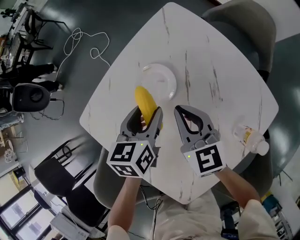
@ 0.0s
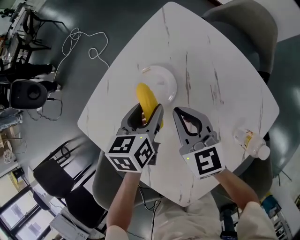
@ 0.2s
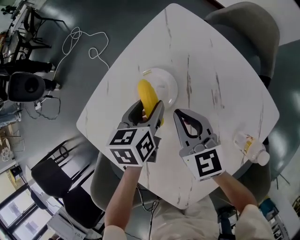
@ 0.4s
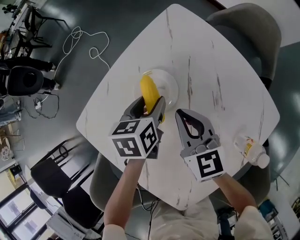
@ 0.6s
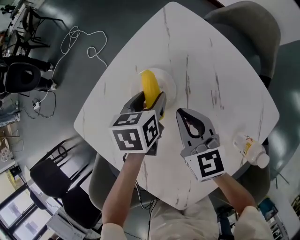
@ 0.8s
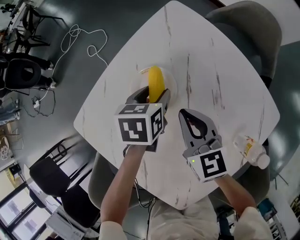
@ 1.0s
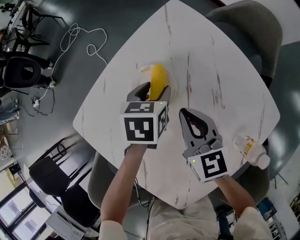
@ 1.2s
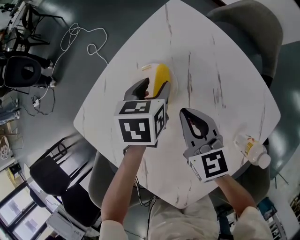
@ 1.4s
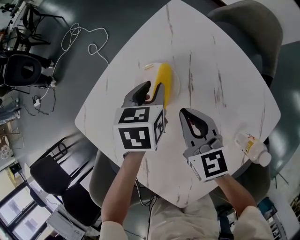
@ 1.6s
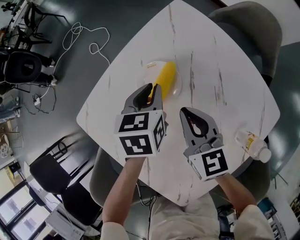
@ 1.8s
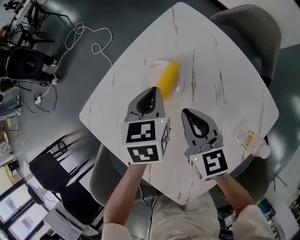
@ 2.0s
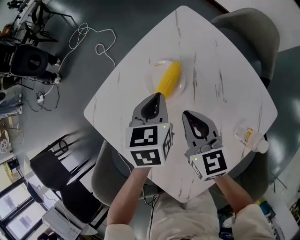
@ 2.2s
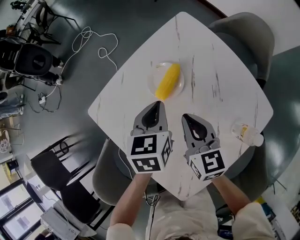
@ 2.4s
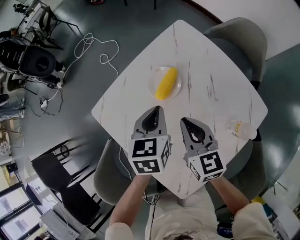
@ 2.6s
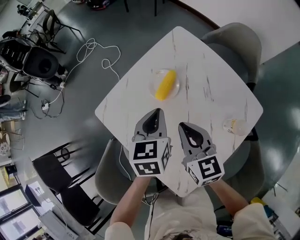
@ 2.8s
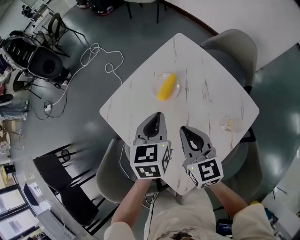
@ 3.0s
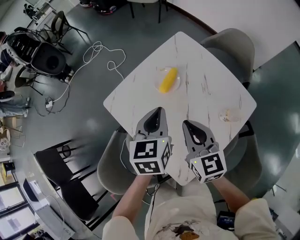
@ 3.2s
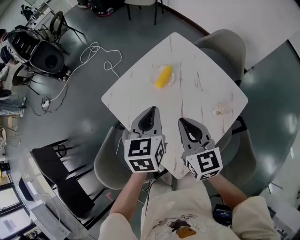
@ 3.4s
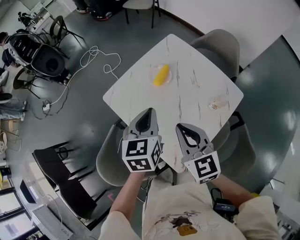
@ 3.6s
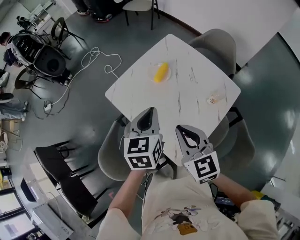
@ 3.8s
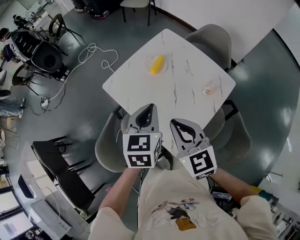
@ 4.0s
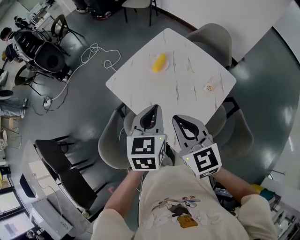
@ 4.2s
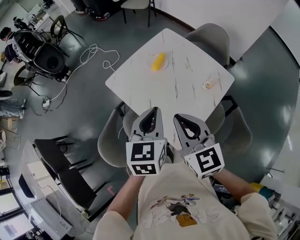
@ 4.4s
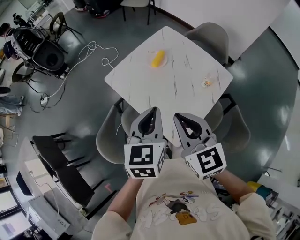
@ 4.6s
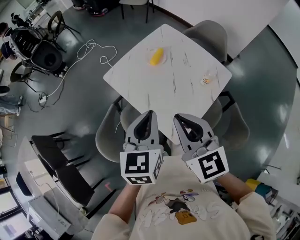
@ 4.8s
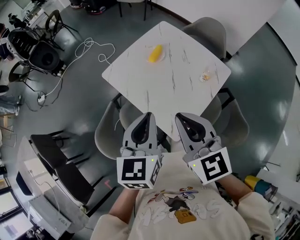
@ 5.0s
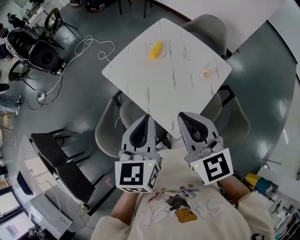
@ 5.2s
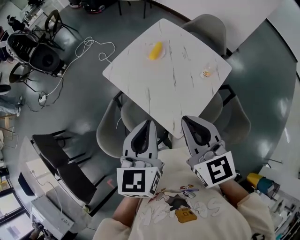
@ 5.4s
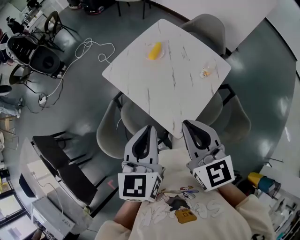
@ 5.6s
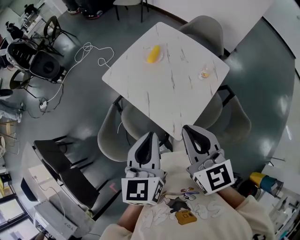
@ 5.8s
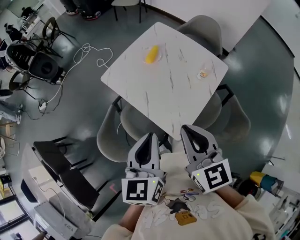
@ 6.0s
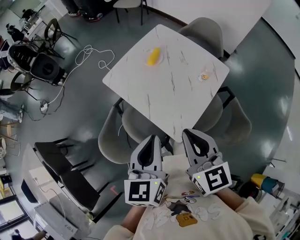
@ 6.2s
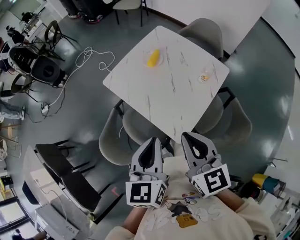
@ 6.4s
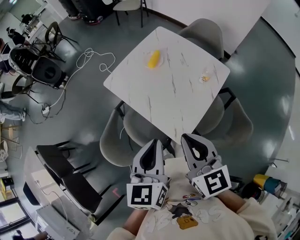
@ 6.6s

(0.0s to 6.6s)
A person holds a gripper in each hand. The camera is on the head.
0.0s - 1.6s: The left gripper moves forward, approximately 10 cm, and closes its fingers.
1.6s - 3.2s: Both grippers travel together upward and backward, roughly 25 cm. The left gripper swivels some 20 degrees, and closes.
3.2s - 5.0s: Both grippers travel together backward and upward, about 30 cm.
5.0s - 6.6s: Both grippers travel together backward, some 5 cm.

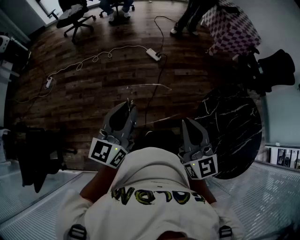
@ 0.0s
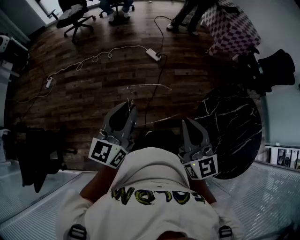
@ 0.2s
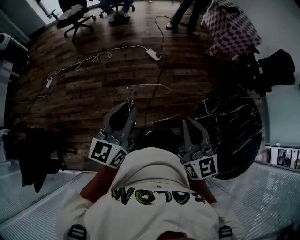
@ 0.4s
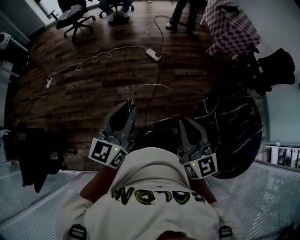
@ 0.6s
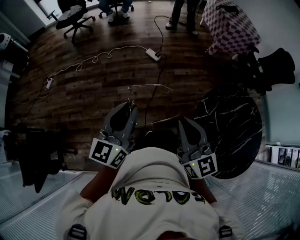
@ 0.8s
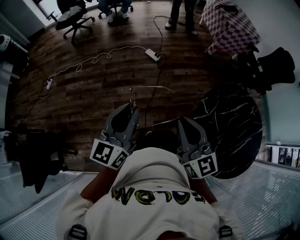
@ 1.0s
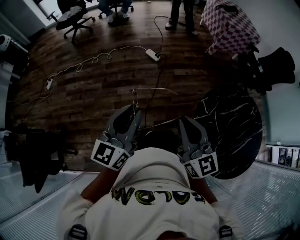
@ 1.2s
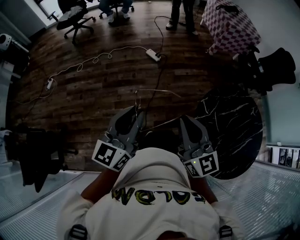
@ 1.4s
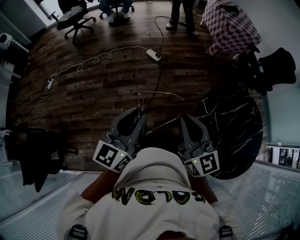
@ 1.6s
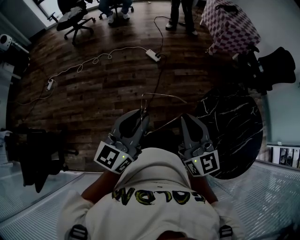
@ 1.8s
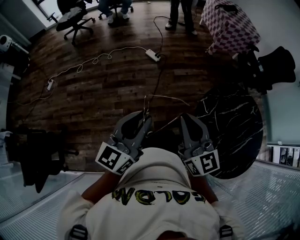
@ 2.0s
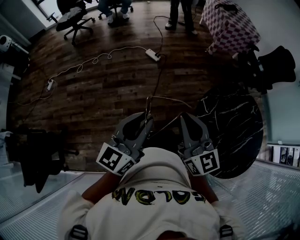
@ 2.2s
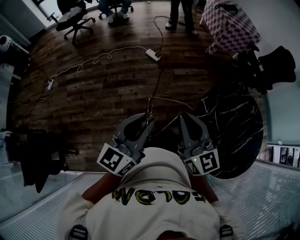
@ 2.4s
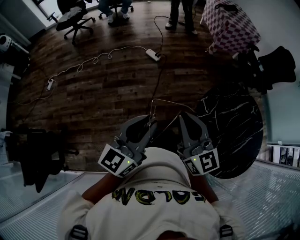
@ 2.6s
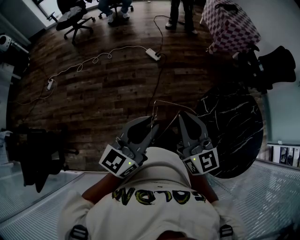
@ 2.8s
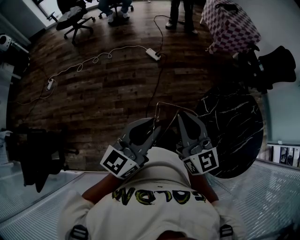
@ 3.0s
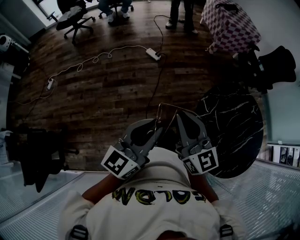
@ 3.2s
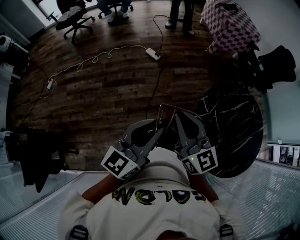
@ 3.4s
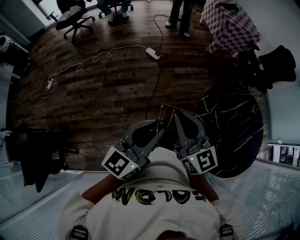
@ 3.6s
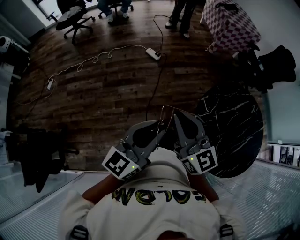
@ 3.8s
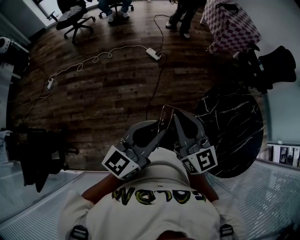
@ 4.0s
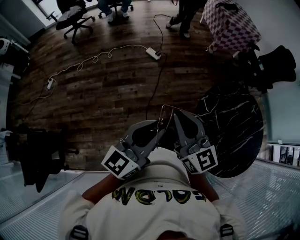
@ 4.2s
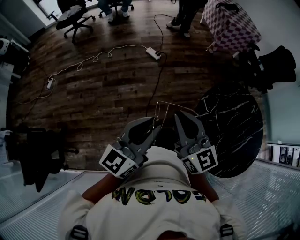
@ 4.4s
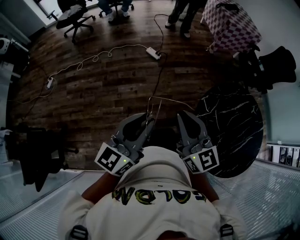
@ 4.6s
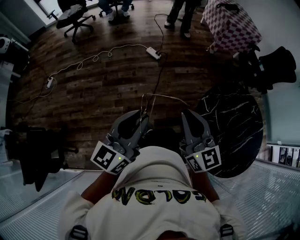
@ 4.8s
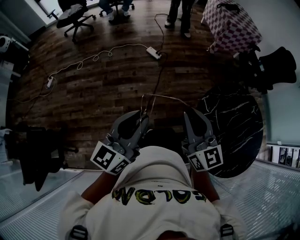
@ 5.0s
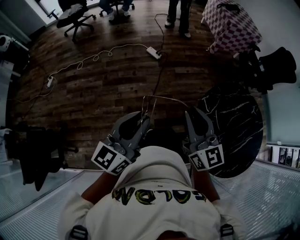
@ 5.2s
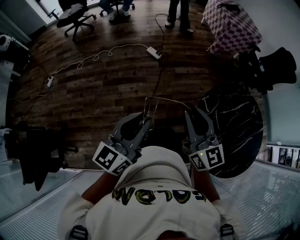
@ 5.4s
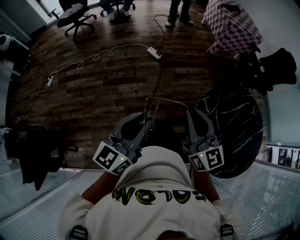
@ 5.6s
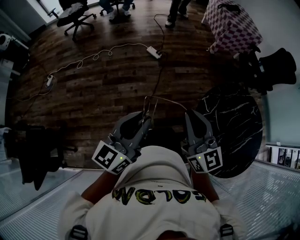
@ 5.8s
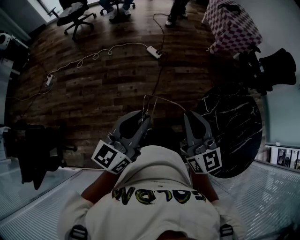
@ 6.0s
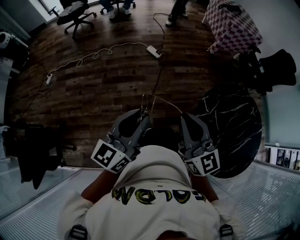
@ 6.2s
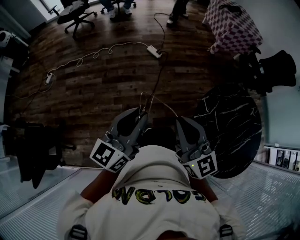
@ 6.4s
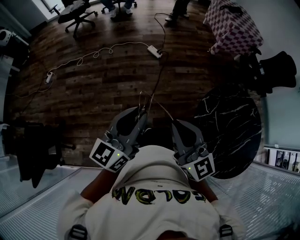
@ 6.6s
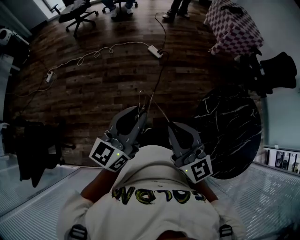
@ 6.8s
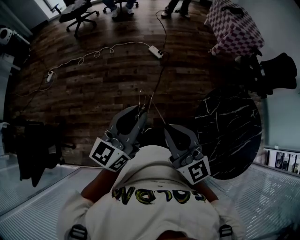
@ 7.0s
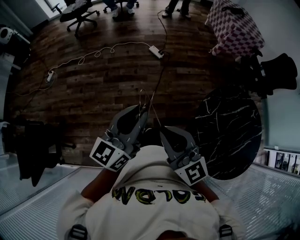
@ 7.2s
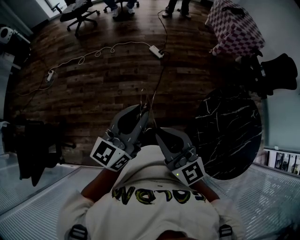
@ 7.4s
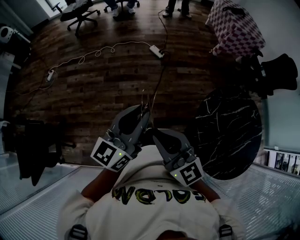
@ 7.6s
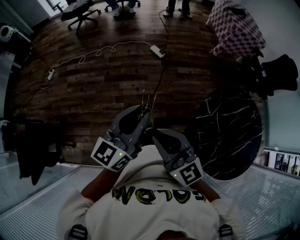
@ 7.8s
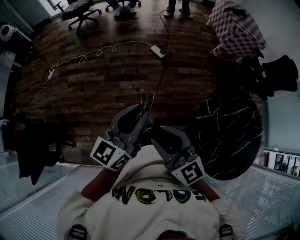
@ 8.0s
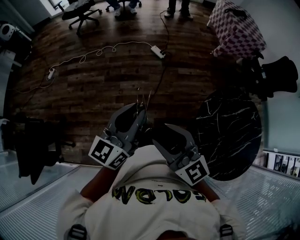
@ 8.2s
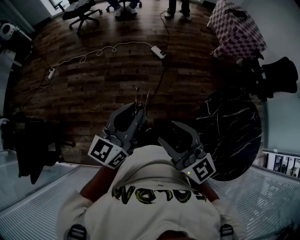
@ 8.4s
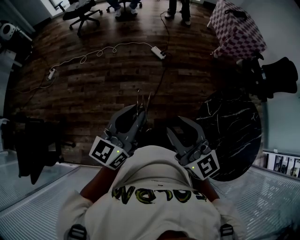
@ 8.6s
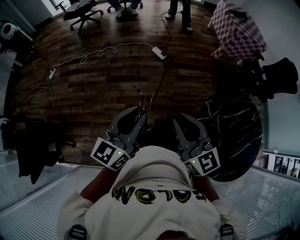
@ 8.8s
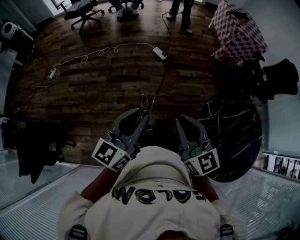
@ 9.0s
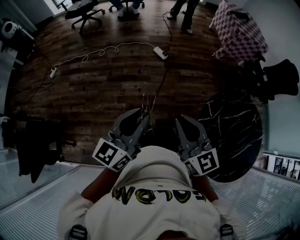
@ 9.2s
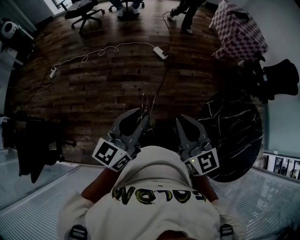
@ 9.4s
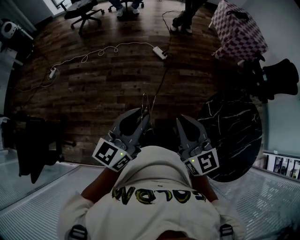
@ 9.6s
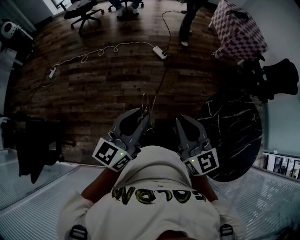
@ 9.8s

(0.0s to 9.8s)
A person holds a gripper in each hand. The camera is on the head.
0.0s - 1.4s: The grippers move only a little.
1.4s - 2.8s: The left gripper travels to the right by about 5 cm.
2.8s - 4.2s: The grippers stay close to where they were, moving slightly.
4.2s - 5.6s: The left gripper shifts by about 5 cm.
5.6s - 7.0s: The right gripper is displaced to the left and backward by roughly 10 cm.
7.0s - 8.4s: The right gripper opens.
8.4s - 9.8s: The right gripper shifts by approximately 5 cm, and closes its fingers.

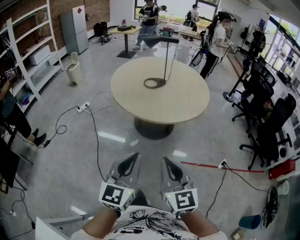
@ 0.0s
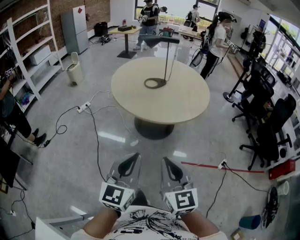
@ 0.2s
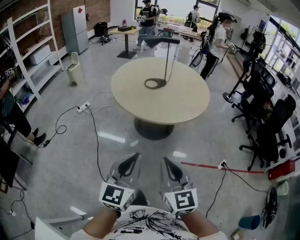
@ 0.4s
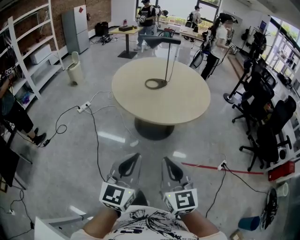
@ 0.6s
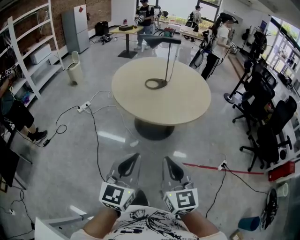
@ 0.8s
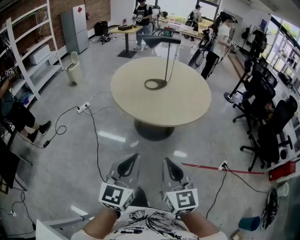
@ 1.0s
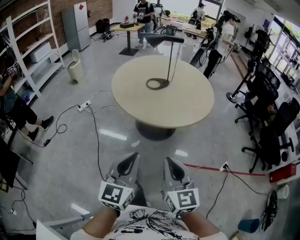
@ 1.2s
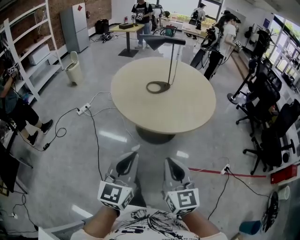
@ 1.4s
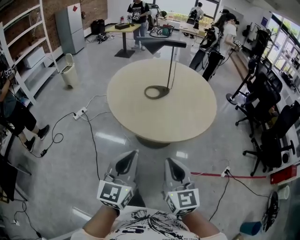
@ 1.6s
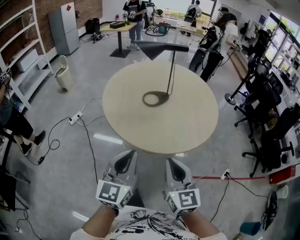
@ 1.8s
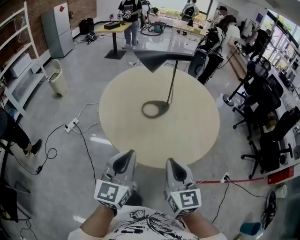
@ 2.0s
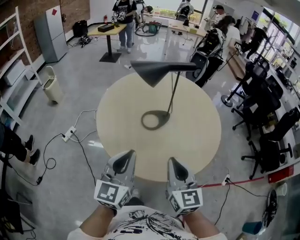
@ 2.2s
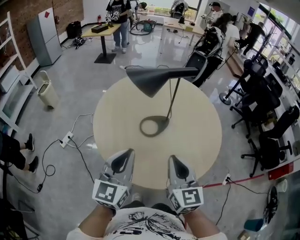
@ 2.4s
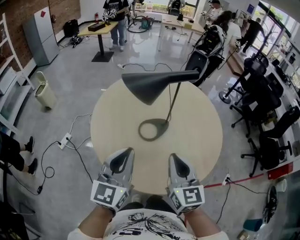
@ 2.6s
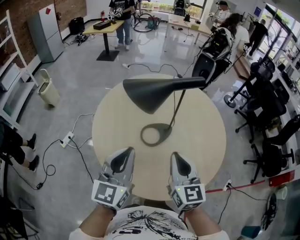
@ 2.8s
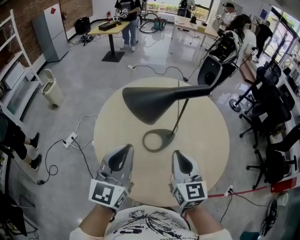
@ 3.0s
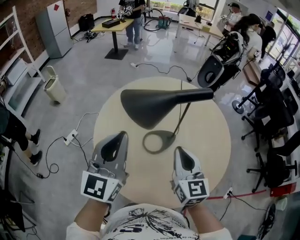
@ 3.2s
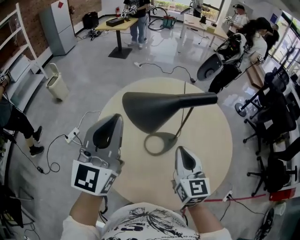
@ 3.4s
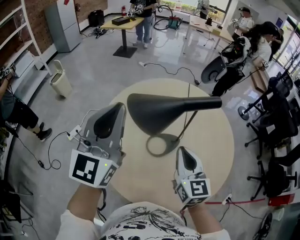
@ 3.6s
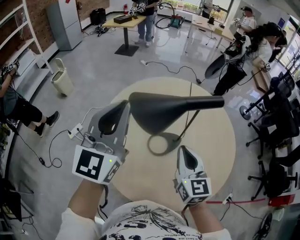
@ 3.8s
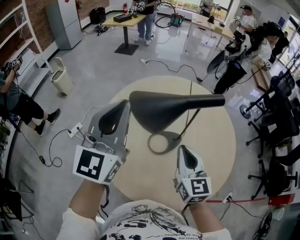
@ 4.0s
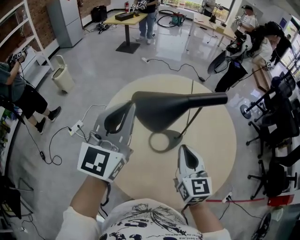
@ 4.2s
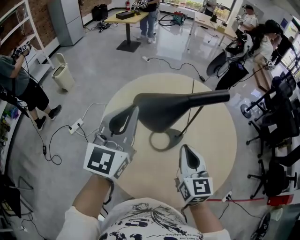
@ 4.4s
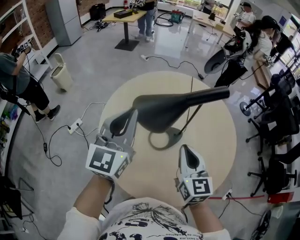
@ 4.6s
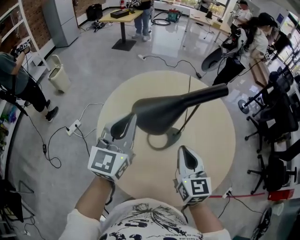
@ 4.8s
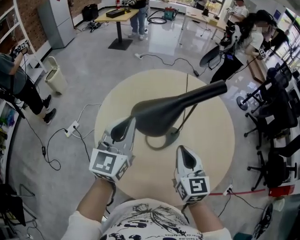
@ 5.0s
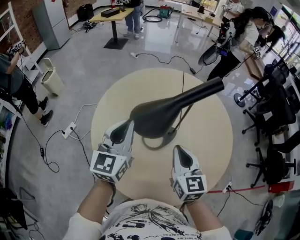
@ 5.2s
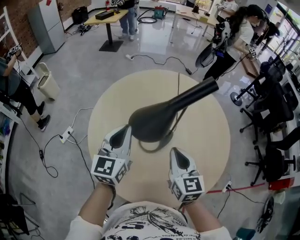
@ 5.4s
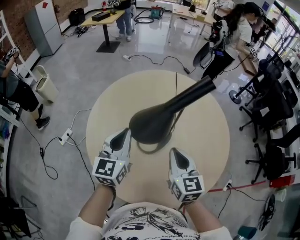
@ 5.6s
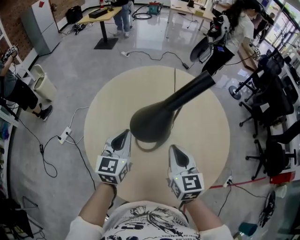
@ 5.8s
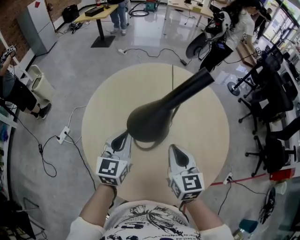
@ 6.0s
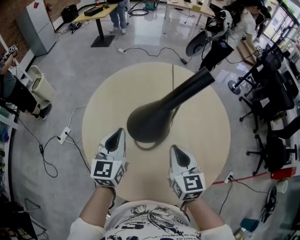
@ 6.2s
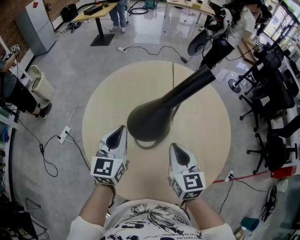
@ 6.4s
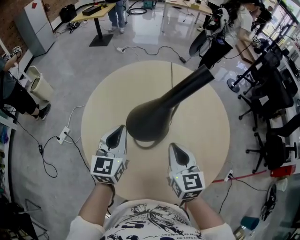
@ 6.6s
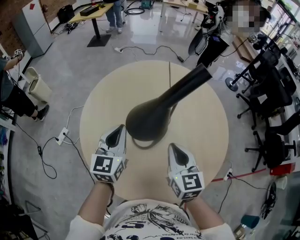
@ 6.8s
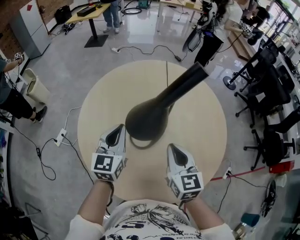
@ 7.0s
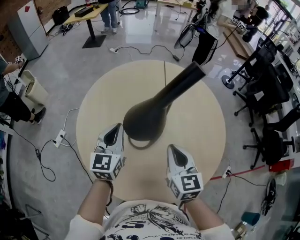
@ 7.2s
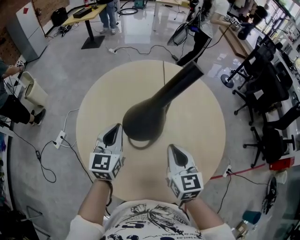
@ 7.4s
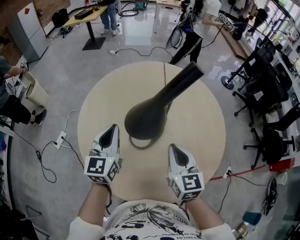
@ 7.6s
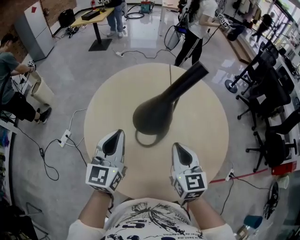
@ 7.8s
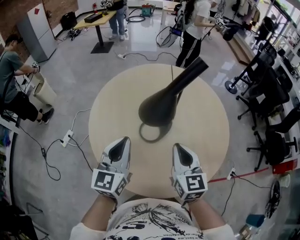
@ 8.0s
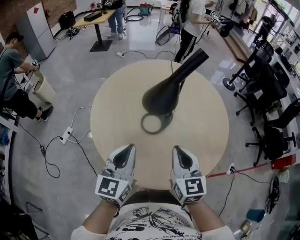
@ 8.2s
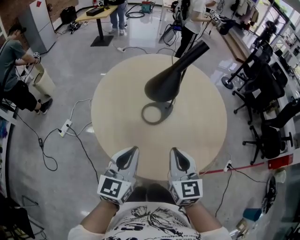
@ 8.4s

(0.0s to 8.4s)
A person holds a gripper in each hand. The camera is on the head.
0.0s - 1.4s: The grippers both shift forward by roughly 10 cm.
1.4s - 2.8s: The pair of grippers is taken forward, some 40 cm.
2.8s - 4.2s: The left gripper heads forward and upward, covering approximately 20 cm. The right gripper moves forward, about 10 cm.
4.2s - 5.6s: The right gripper moves some 5 cm; the left gripper shifts some 15 cm downward.
5.6s - 7.0s: The grippers move only a little.
7.0s - 8.4s: Both grippers travel together backward, about 20 cm.
